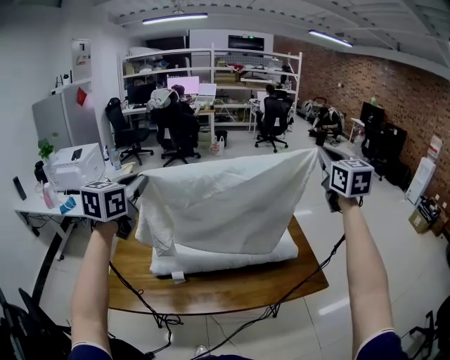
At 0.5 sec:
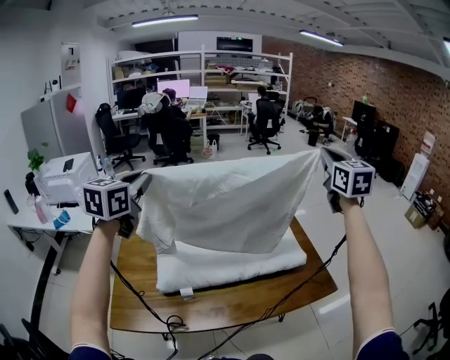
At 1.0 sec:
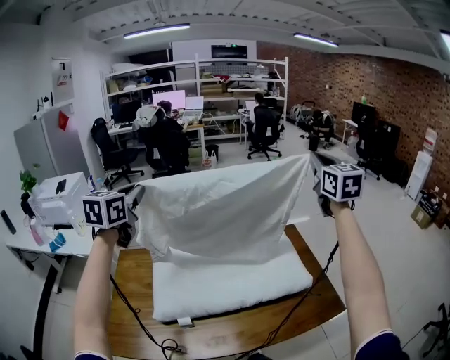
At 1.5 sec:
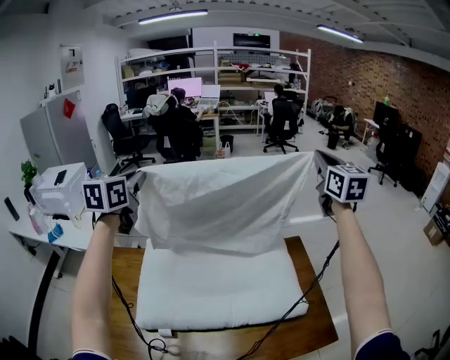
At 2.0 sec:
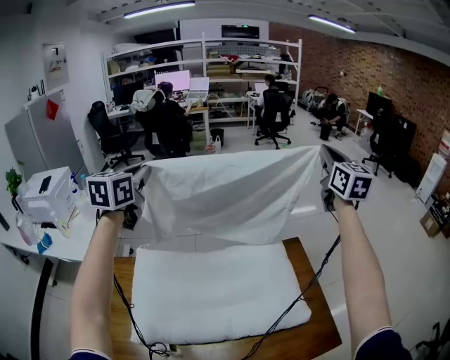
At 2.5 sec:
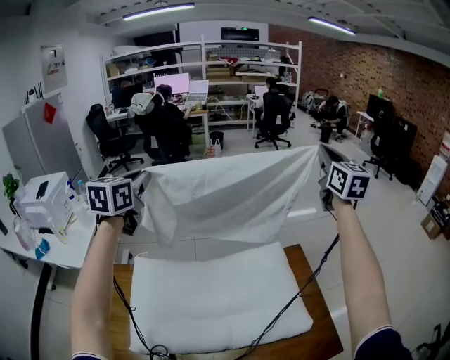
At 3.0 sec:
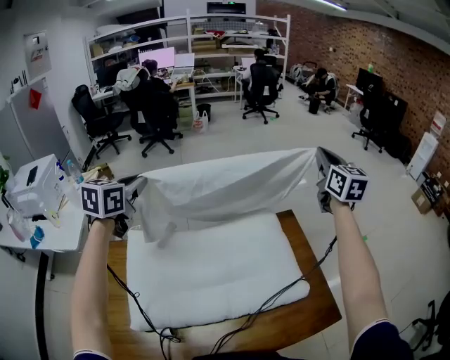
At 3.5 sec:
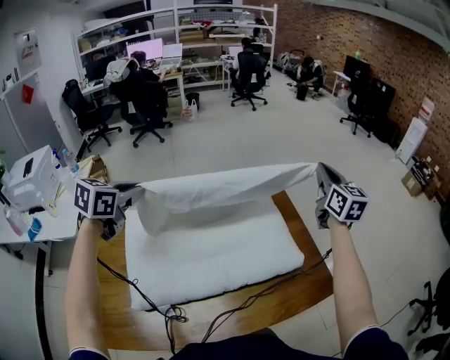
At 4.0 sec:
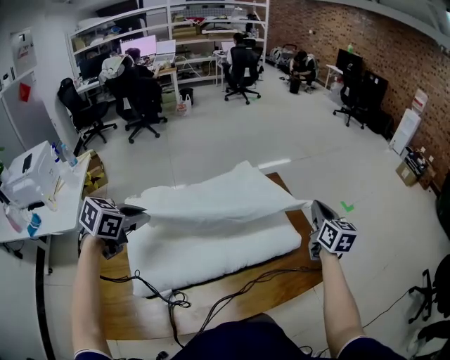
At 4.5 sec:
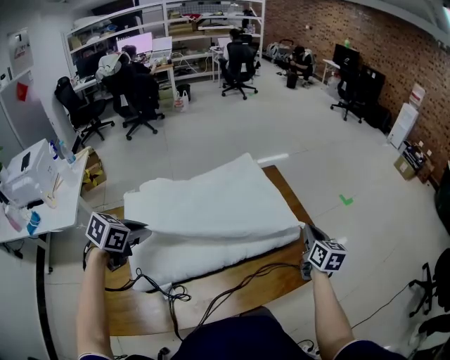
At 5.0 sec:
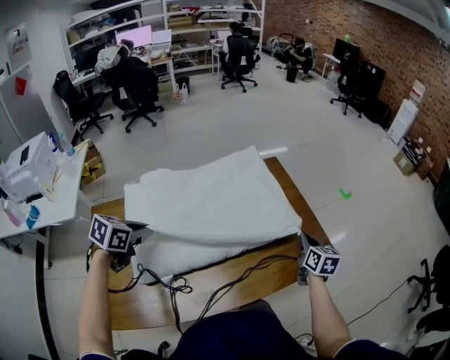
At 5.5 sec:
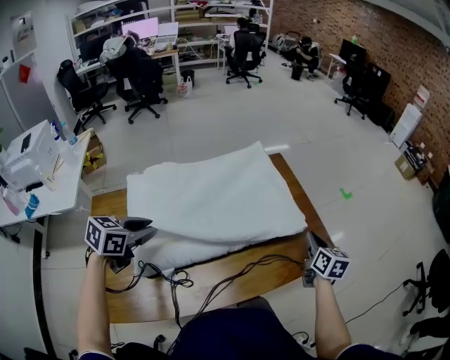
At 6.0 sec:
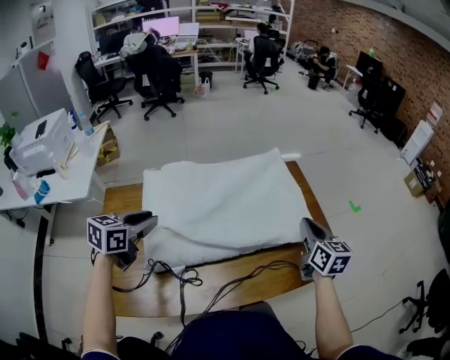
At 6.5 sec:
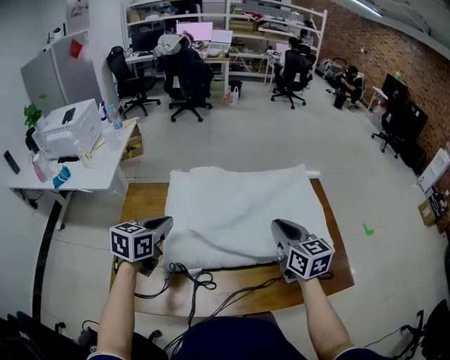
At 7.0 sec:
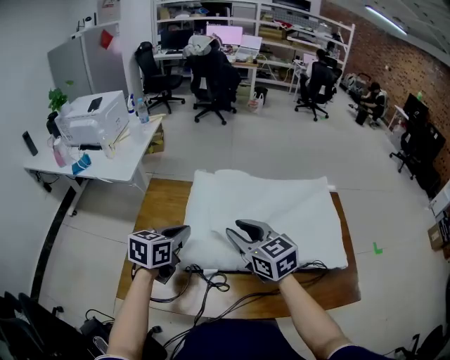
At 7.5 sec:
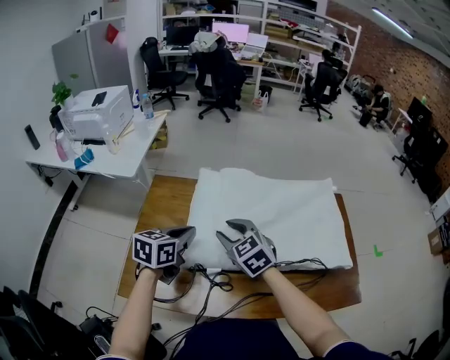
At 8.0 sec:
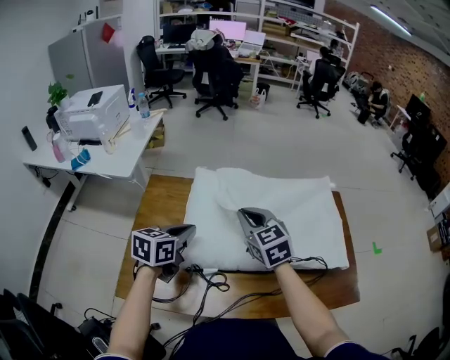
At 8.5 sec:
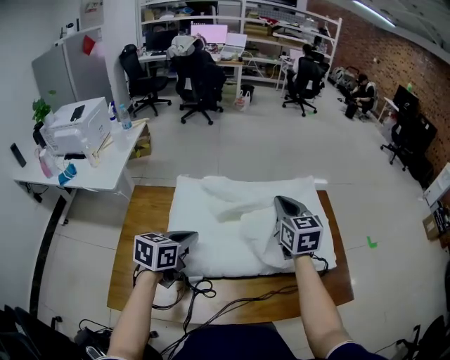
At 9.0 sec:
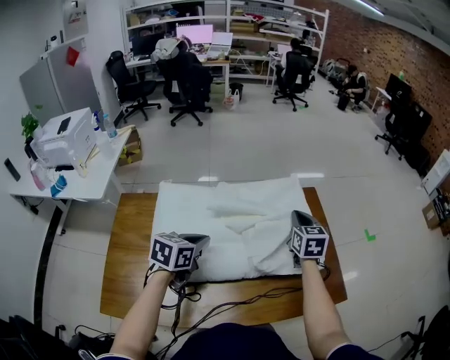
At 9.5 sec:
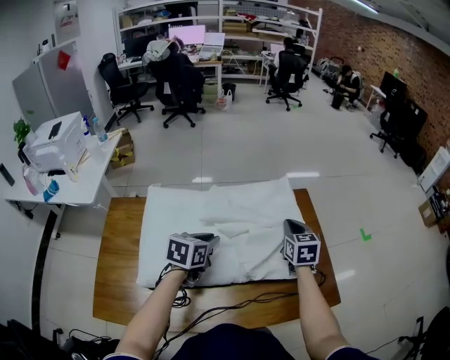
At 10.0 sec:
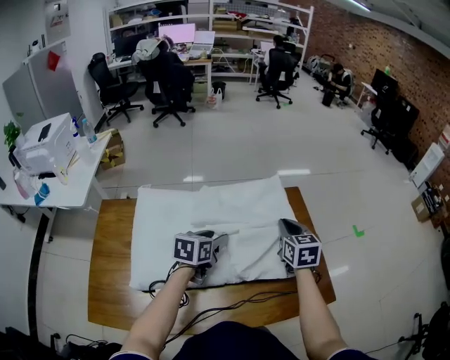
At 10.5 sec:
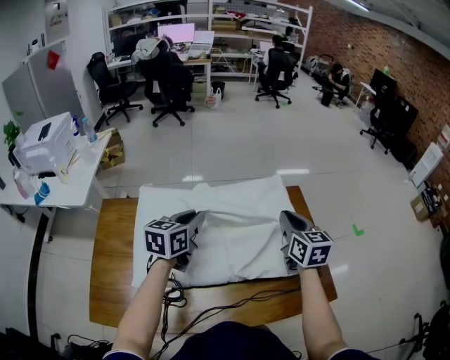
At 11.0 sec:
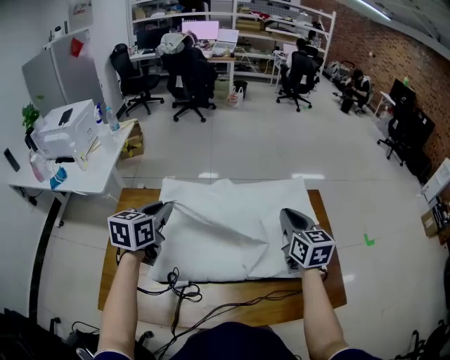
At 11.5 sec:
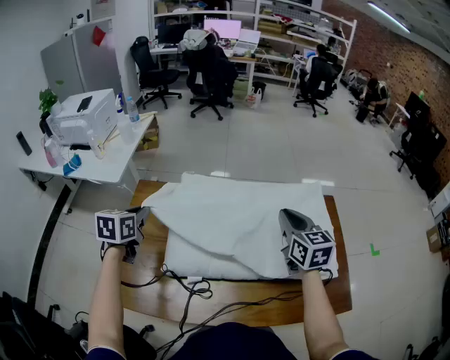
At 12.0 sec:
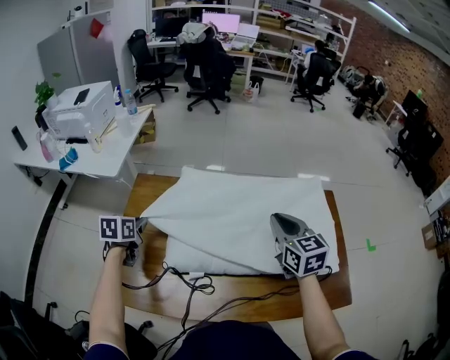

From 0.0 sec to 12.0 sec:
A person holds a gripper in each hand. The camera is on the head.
From 0.0 sec to 2.0 sec: The two grippers go roughly 35 cm forward.
From 2.0 sec to 4.0 sec: Both grippers move downward and backward, some 35 cm. The left gripper angles its fingers downward, by about 30 degrees. The right gripper changes its angle by about 30 degrees.
From 4.0 sec to 6.0 sec: The left gripper heads backward, covering approximately 10 cm, and opens; the right gripper goes about 15 cm backward and to the left, and travels downward and back again, about 15 cm each way.
From 6.0 sec to 8.0 sec: The right gripper changes place by some 35 cm, rotates some 50 degrees, and opens, then closes once more. The left gripper ends up about 5 cm from where it was, and closes its fingers.
From 8.0 sec to 10.0 sec: The right gripper goes approximately 30 cm to the right, and rotates roughly 40 degrees. The left gripper travels to the right and forward by approximately 25 cm, and opens up.
From 10.0 sec to 12.0 sec: The left gripper travels upward and back again, approximately 15 cm each way, changes its angle by roughly 30 degrees, and closes. Meanwhile the right gripper ends up roughly 20 cm from where it was, and rotates about 20 degrees.

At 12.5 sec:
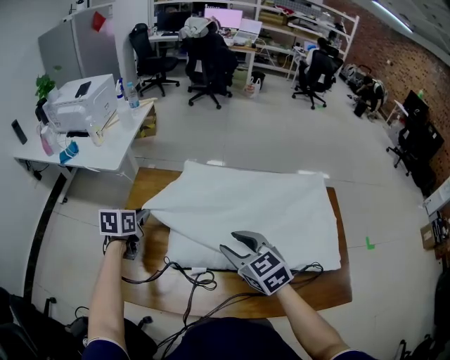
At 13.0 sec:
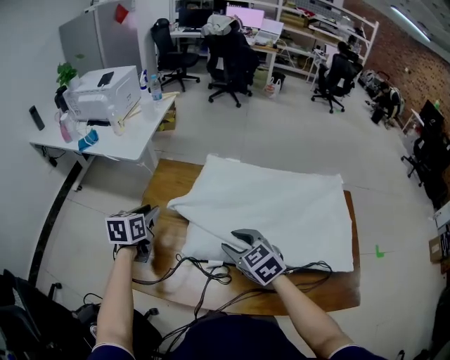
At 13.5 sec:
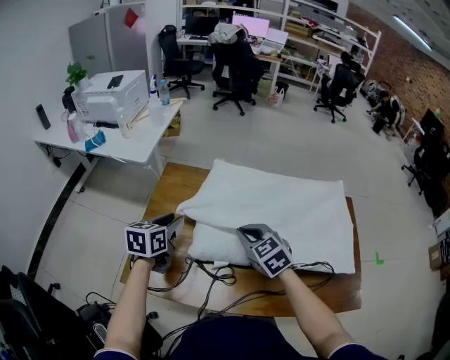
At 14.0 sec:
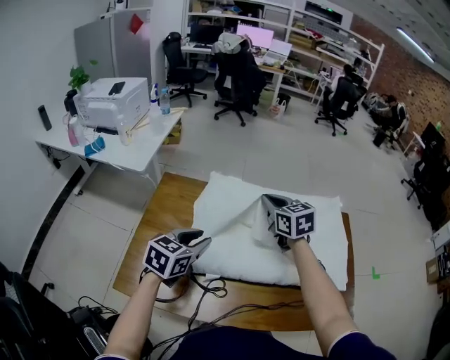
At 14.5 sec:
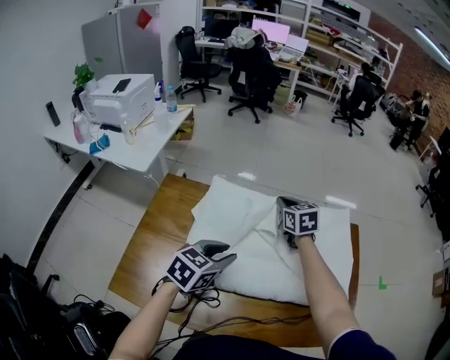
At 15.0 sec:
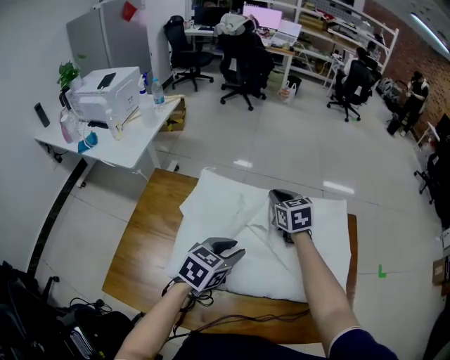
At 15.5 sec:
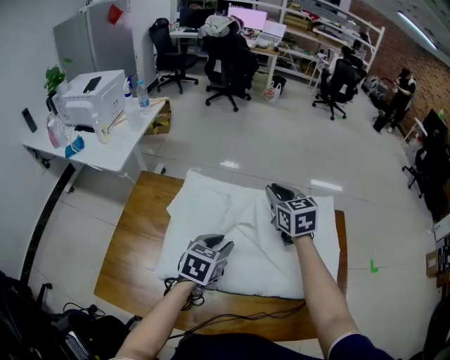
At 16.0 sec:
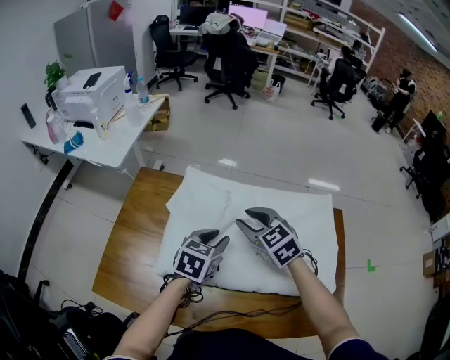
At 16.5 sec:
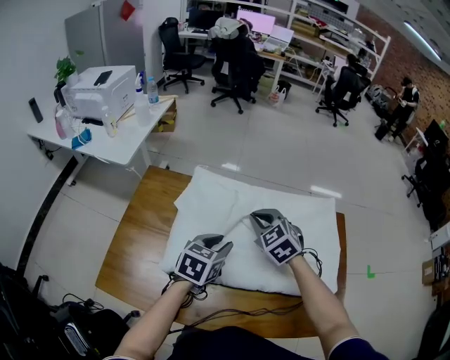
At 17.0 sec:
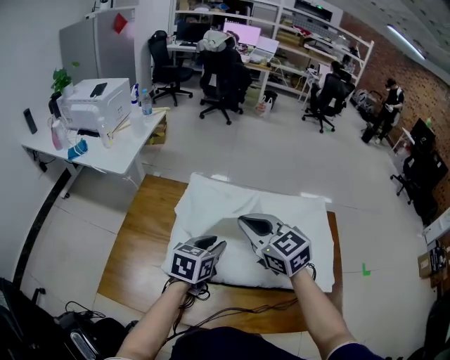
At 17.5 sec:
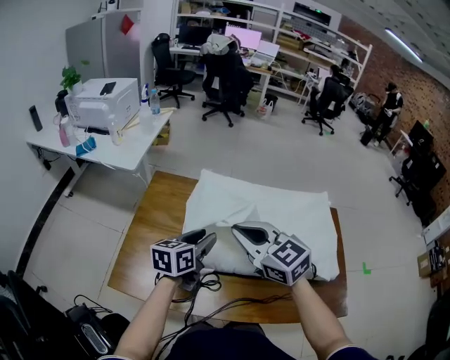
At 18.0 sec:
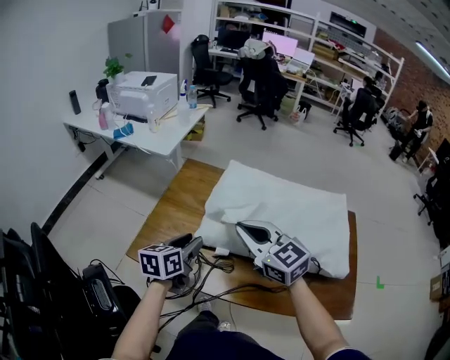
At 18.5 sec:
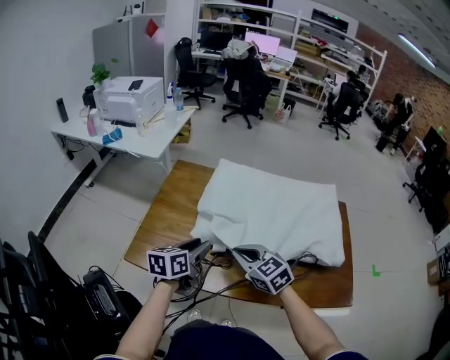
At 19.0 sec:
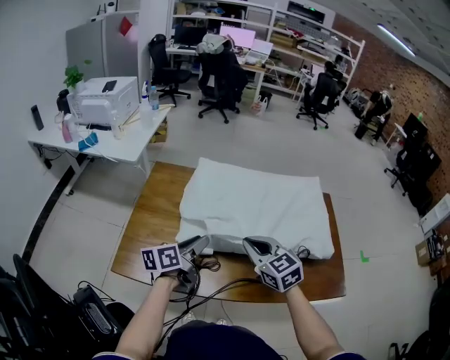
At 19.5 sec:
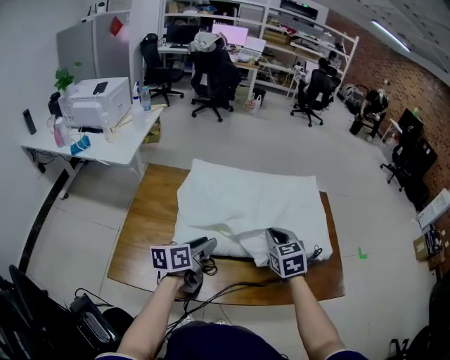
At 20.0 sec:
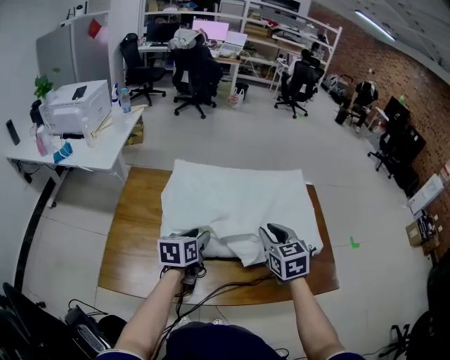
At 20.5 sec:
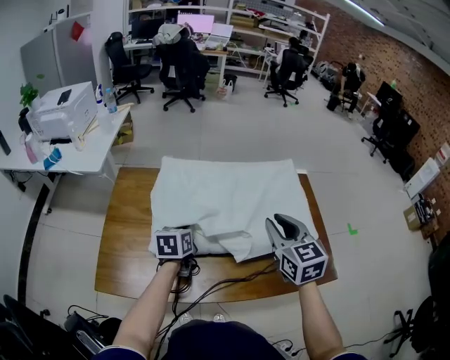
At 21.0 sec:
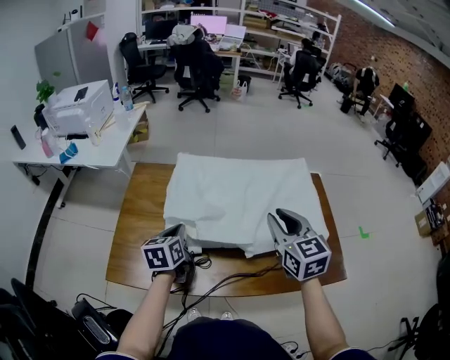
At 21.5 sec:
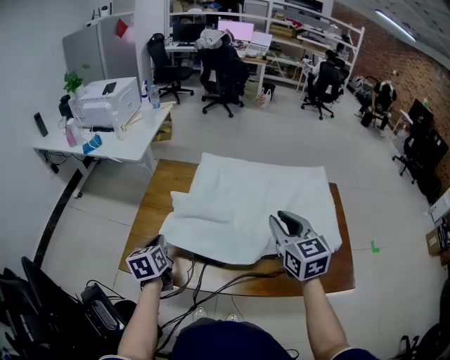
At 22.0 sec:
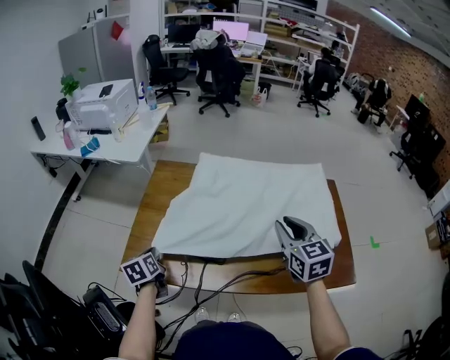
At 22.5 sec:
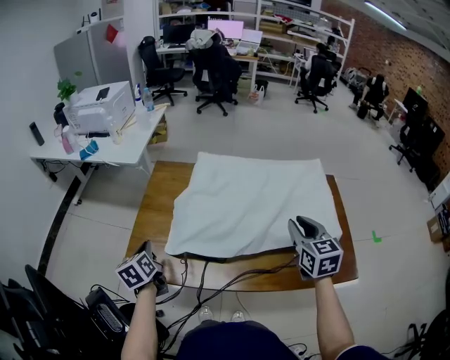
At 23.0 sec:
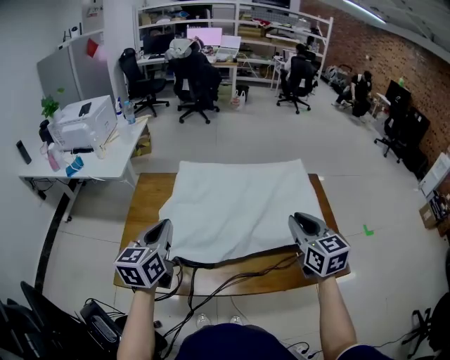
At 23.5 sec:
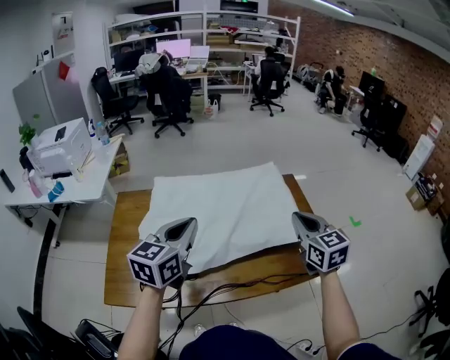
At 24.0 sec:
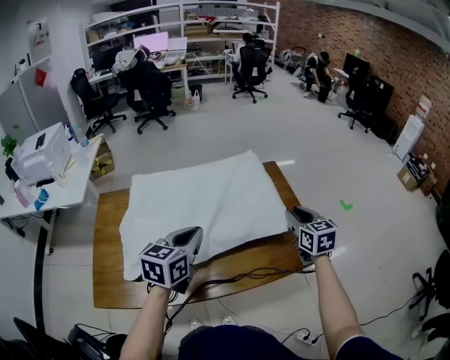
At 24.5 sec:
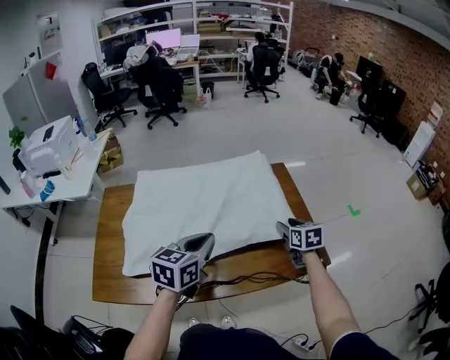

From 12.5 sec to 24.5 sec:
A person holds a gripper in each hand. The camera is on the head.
From 12.5 sec to 14.5 sec: The right gripper moves up and down over about 10 cm, changing direction 2 times, and closes, while the left gripper ends up some 25 cm from where it was, swivels some 30 degrees, and opens.
From 14.5 sec to 16.5 sec: The right gripper heads backward, covering some 10 cm, swivels about 30 degrees, and opens, then closes again.
From 16.5 sec to 18.5 sec: The left gripper heads to the left and backward, covering approximately 20 cm, and changes its angle by approximately 30 degrees, while the right gripper travels backward and to the left by some 25 cm, and rotates about 20 degrees.
From 18.5 sec to 20.5 sec: The left gripper moves some 15 cm, and closes. Meanwhile the right gripper shifts by roughly 25 cm, swivels approximately 40 degrees, and opens its fingers.
From 20.5 sec to 22.5 sec: The left gripper moves to the left and backward, roughly 30 cm, and turns by about 40 degrees, while the right gripper goes to the left and returns, about 10 cm each way.
From 22.5 sec to 24.5 sec: The left gripper shifts by some 40 cm, and turns by approximately 60 degrees; the right gripper changes place by about 25 cm, changes its angle by some 30 degrees, and opens its fingers.

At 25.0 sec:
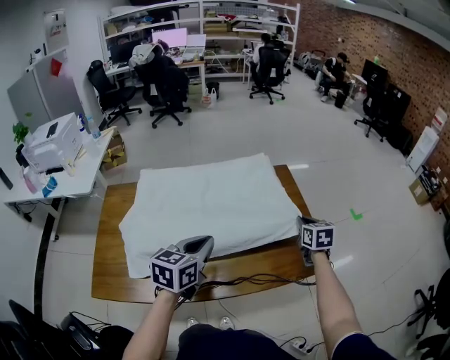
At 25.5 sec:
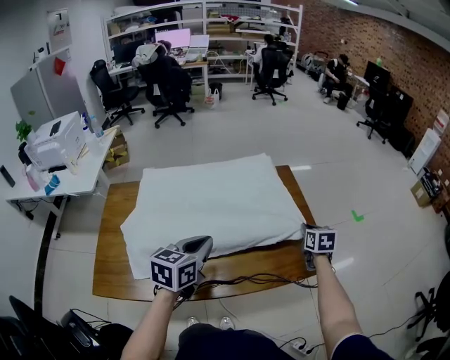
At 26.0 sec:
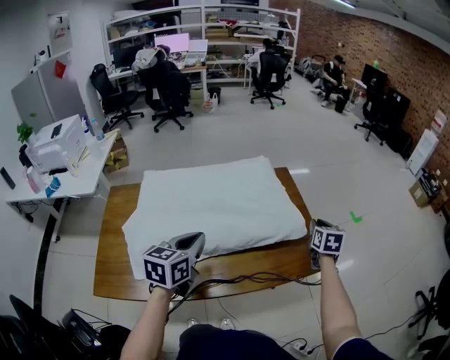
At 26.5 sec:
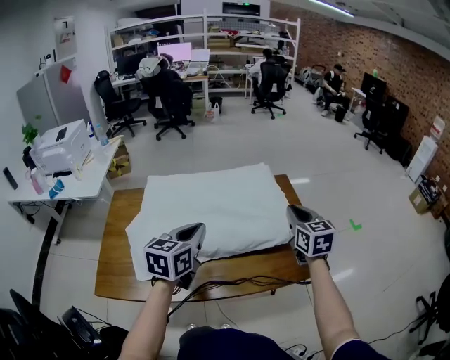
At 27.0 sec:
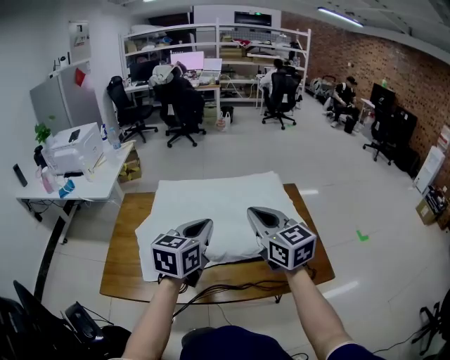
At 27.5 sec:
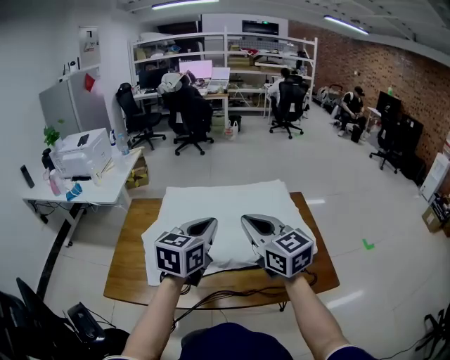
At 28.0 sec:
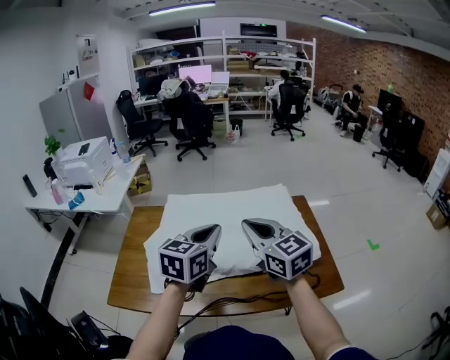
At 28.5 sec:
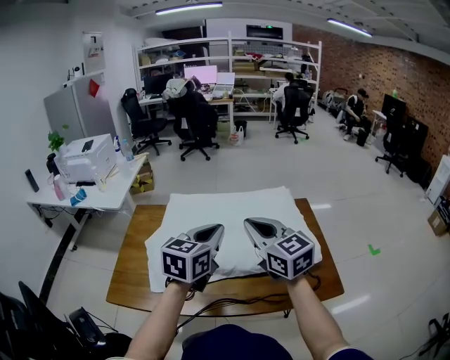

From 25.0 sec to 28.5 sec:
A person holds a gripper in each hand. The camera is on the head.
From 25.0 sec to 27.0 sec: The left gripper goes some 10 cm upward. The right gripper ends up some 35 cm from where it was, and rotates about 40 degrees.
From 27.0 sec to 28.5 sec: The grippers move only a little.
